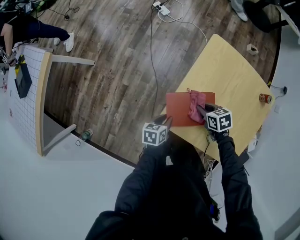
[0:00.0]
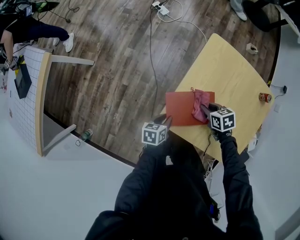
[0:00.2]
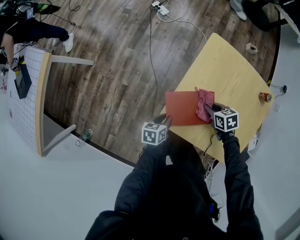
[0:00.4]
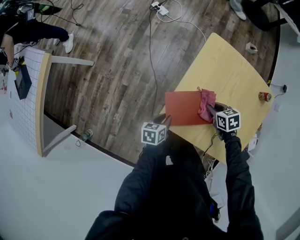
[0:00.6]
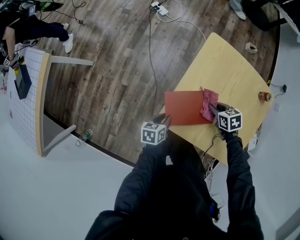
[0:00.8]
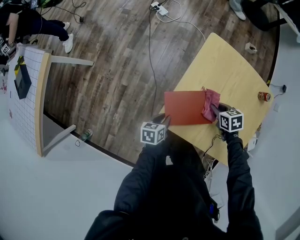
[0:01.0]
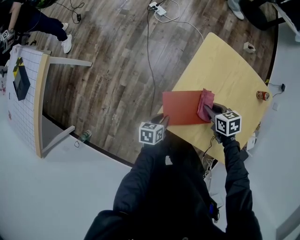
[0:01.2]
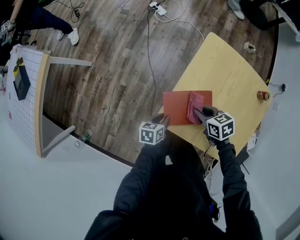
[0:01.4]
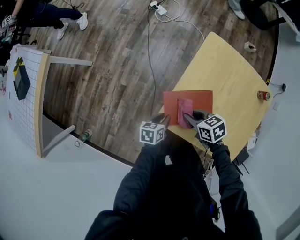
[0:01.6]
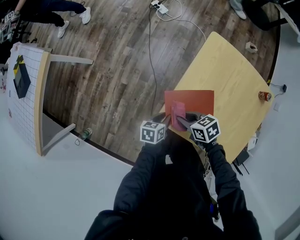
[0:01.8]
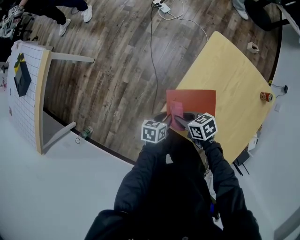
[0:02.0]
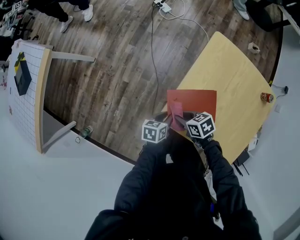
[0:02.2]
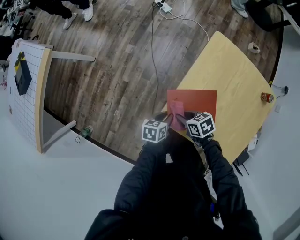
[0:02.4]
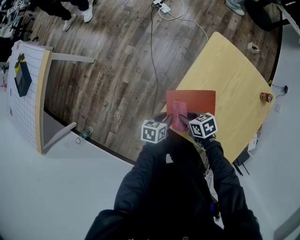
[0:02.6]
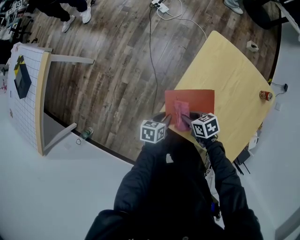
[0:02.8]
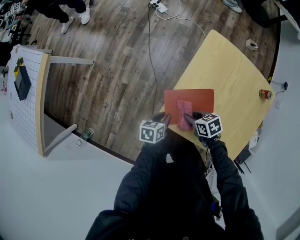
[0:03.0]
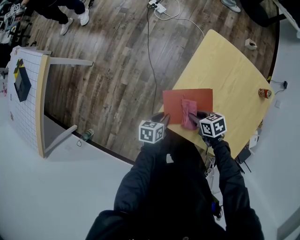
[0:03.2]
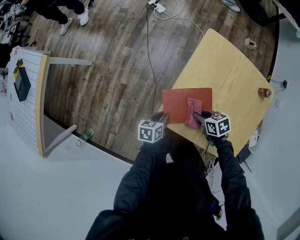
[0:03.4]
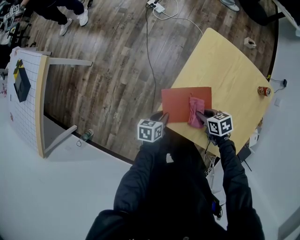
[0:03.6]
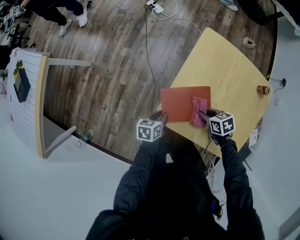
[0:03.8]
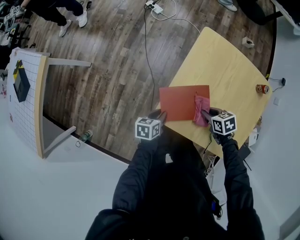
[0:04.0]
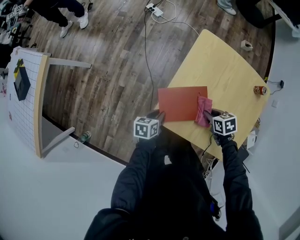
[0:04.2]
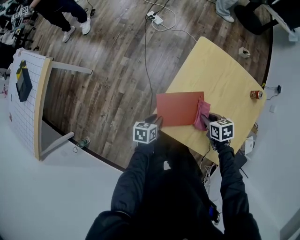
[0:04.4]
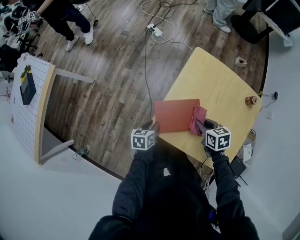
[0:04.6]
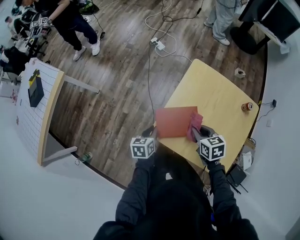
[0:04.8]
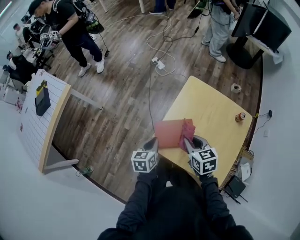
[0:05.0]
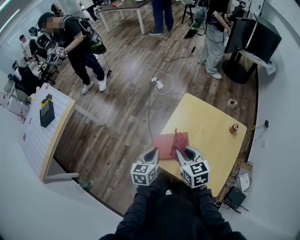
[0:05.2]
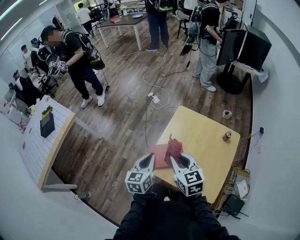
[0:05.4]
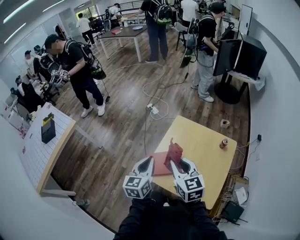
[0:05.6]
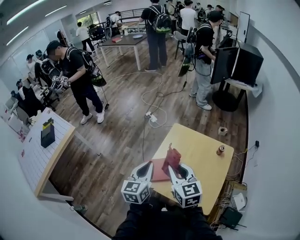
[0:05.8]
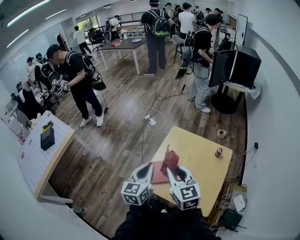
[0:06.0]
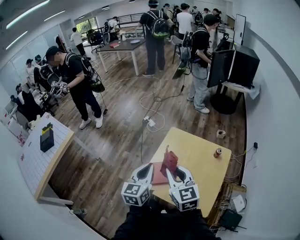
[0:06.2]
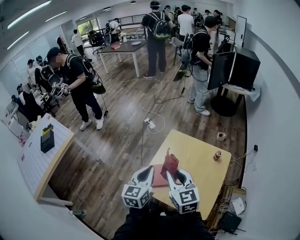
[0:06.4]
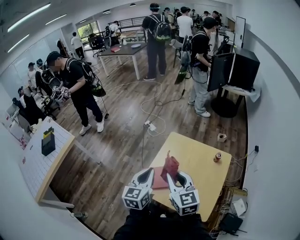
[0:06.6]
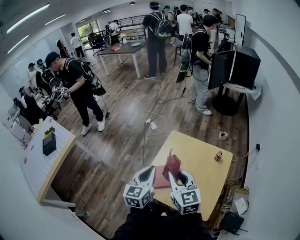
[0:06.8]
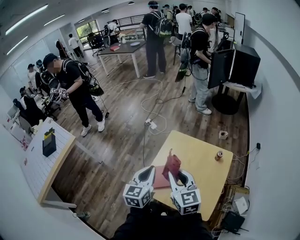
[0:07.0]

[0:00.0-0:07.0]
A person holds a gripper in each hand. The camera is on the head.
0:00.0 to 0:01.4: The right gripper moves upward, roughly 5 cm, and goes to the right and returns, about 10 cm each way.
0:01.4 to 0:02.8: The right gripper changes place by approximately 10 cm.
0:02.8 to 0:04.2: The right gripper changes place by some 15 cm.
0:04.2 to 0:05.6: The grippers both shift upward by about 40 cm. The right gripper angles its fingers upward, by about 40 degrees. Meanwhile the left gripper points its fingers approximately 30 degrees further upward.
0:05.6 to 0:07.0: The right gripper ends up about 5 cm from where it was. Meanwhile the left gripper shifts some 5 cm to the right.

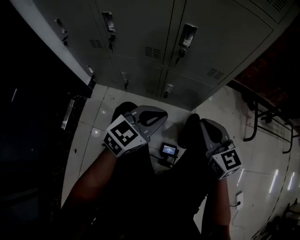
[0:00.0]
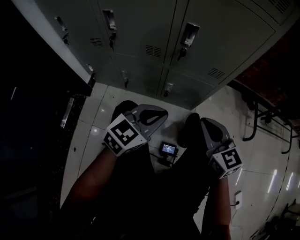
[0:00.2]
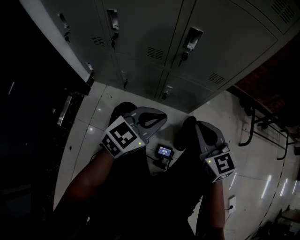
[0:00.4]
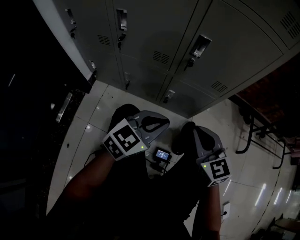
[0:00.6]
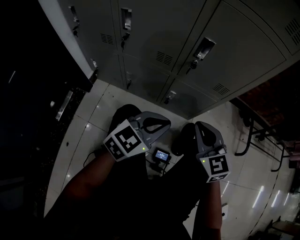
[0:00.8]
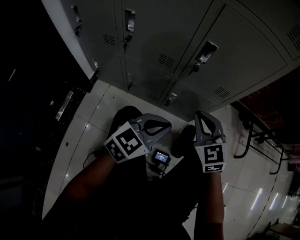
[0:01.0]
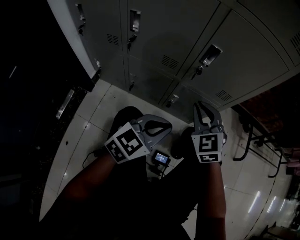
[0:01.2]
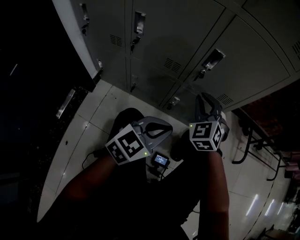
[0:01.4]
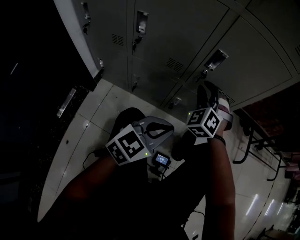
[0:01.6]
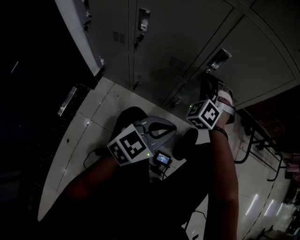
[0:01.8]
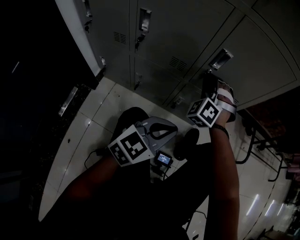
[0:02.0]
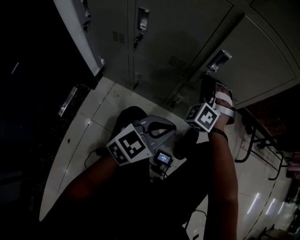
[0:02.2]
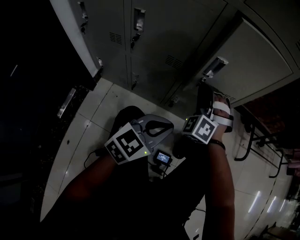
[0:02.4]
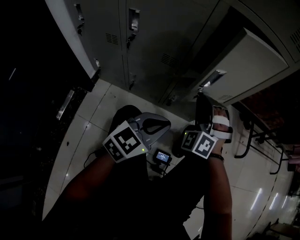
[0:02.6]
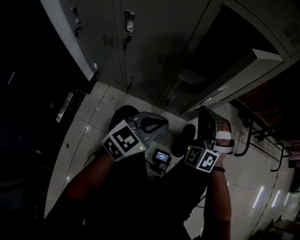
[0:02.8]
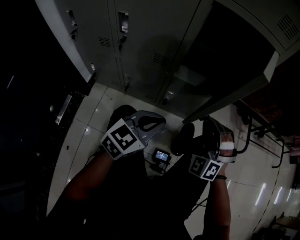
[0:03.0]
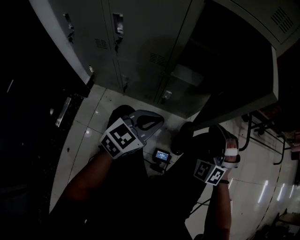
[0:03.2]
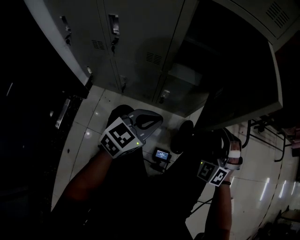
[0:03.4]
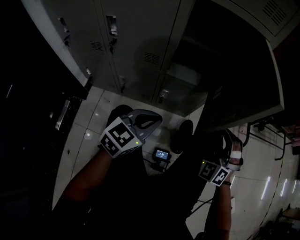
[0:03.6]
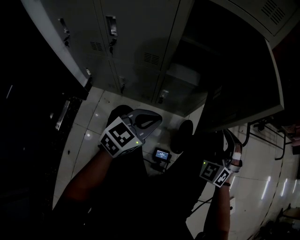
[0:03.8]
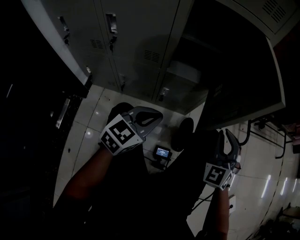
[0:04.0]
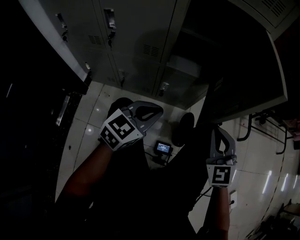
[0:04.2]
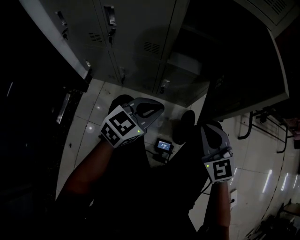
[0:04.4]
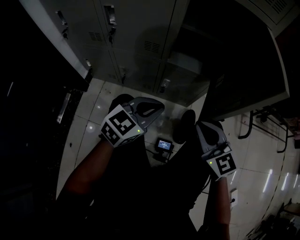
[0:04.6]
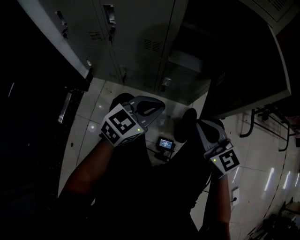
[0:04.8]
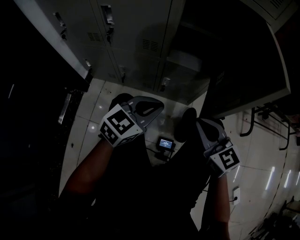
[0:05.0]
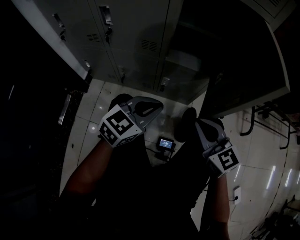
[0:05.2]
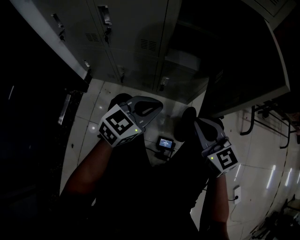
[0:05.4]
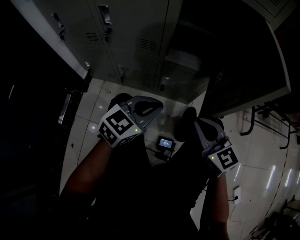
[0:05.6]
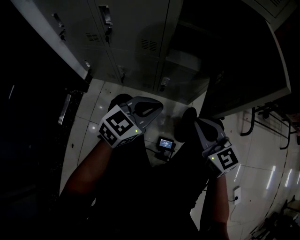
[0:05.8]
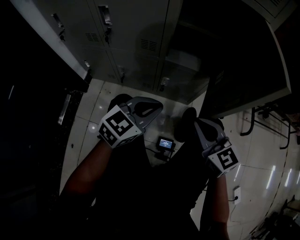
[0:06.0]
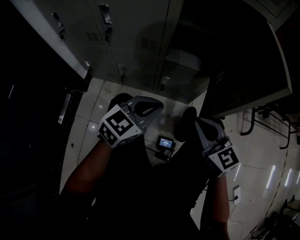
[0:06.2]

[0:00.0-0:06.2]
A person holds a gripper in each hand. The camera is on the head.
0:00.0 to 0:01.6: The right gripper heads forward and to the left, covering roughly 20 cm, twists approximately 60 degrees counterclockwise, seen from behind, and opens.
0:01.6 to 0:03.2: The right gripper shifts approximately 20 cm to the right and backward.
0:03.2 to 0:04.6: The right gripper goes approximately 5 cm backward, moves some 5 cm to the right and comes back, and twists approximately 60 degrees clockwise, seen from behind.
0:04.6 to 0:06.2: The grippers move only a little.

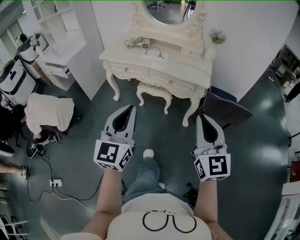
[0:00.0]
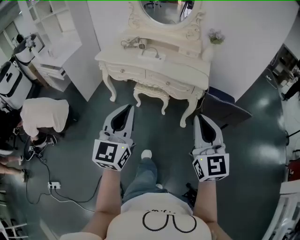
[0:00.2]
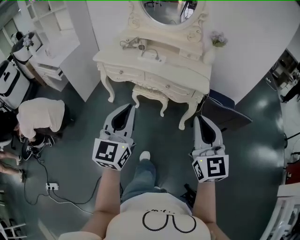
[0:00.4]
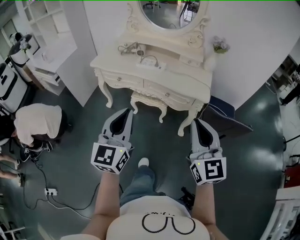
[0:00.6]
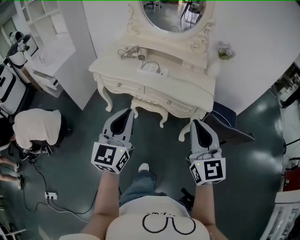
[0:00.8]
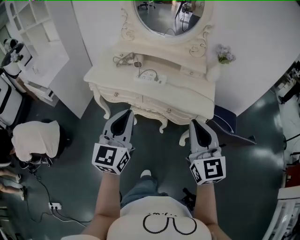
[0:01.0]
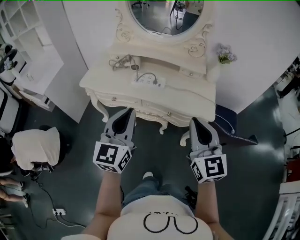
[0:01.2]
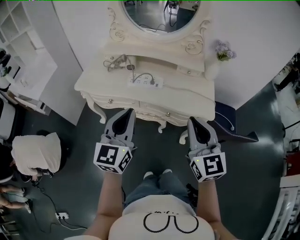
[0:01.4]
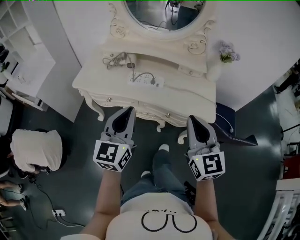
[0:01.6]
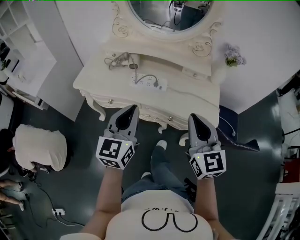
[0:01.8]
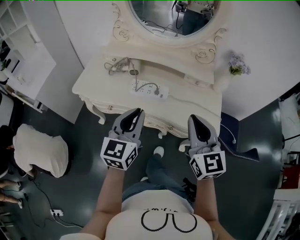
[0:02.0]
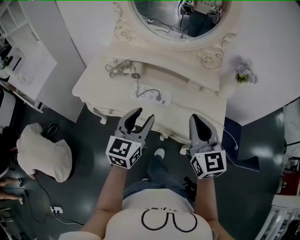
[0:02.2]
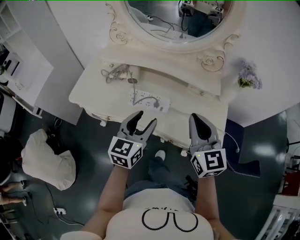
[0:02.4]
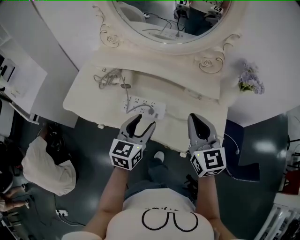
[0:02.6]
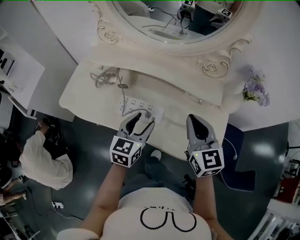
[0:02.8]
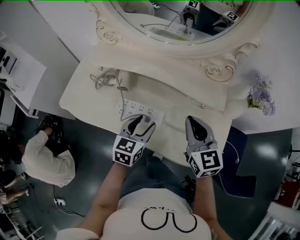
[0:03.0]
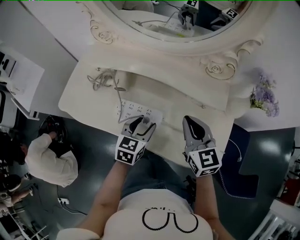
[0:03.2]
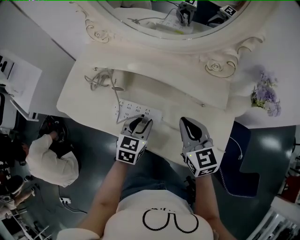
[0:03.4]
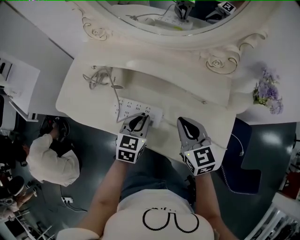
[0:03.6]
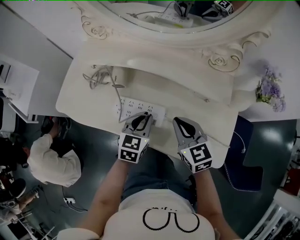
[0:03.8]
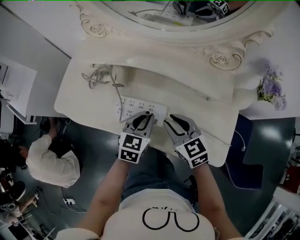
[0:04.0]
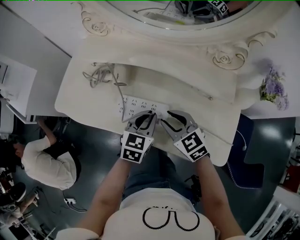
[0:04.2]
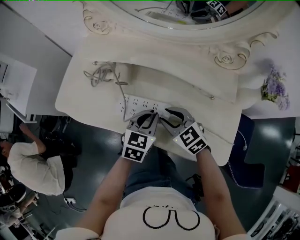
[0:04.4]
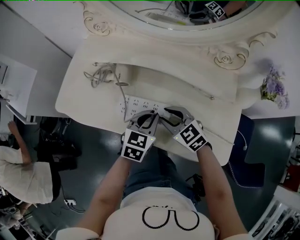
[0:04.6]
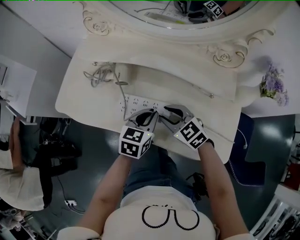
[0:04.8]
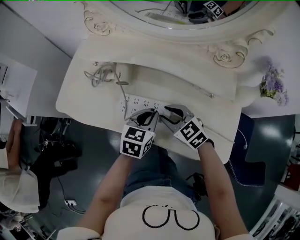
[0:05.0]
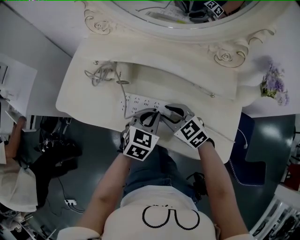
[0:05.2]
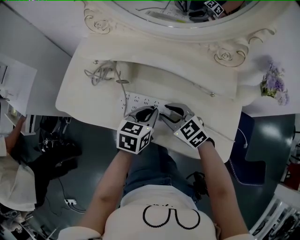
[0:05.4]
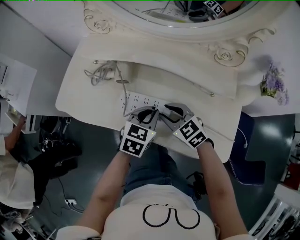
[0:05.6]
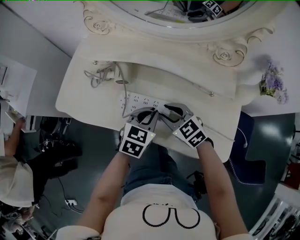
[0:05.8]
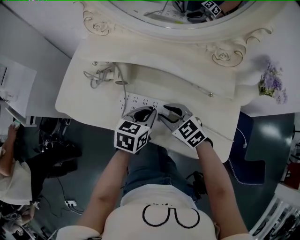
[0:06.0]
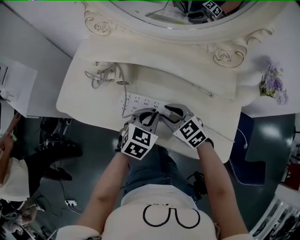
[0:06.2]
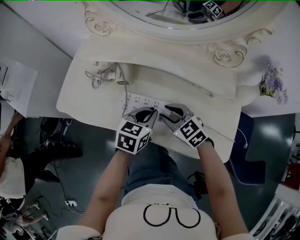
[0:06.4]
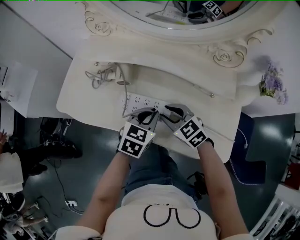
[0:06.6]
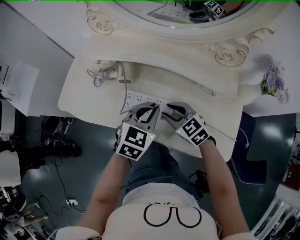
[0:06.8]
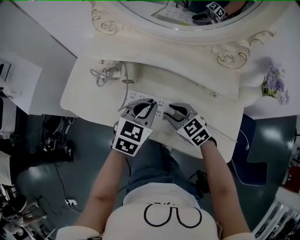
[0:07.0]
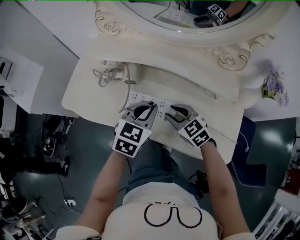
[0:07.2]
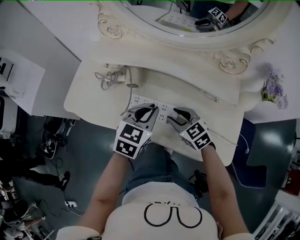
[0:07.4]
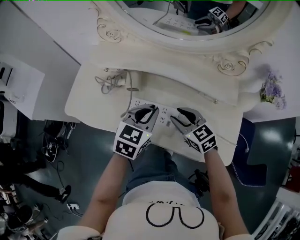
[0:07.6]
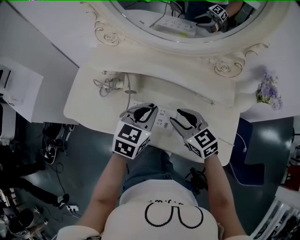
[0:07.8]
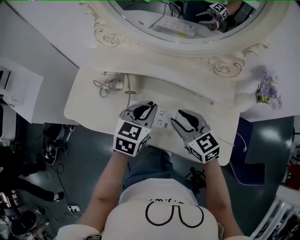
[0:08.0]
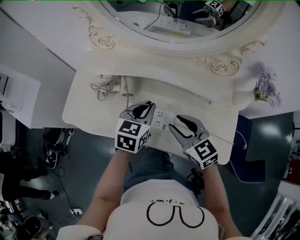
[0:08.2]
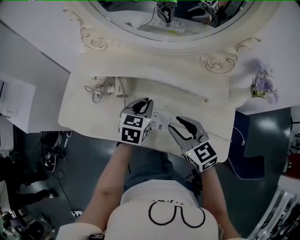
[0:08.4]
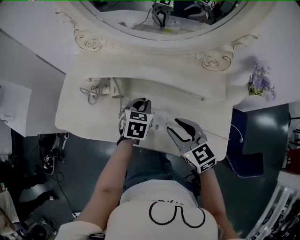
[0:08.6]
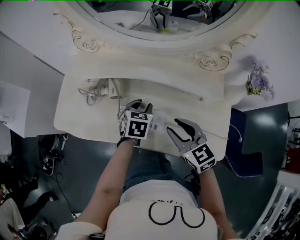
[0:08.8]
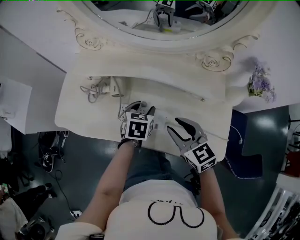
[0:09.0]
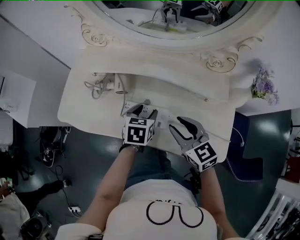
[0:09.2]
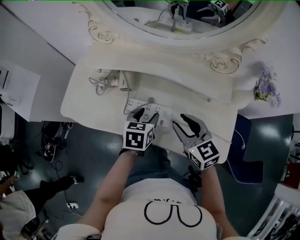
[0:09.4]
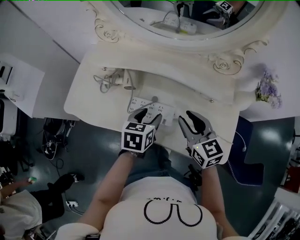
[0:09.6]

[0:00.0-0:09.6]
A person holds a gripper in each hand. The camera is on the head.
0:00.0 to 0:01.6: The grippers both shift forward by some 35 cm.
0:01.6 to 0:03.2: The two grippers go approximately 35 cm forward and downward. The right gripper changes its angle by about 20 degrees, while the left gripper tilts its fingers about 30 degrees downward, and opens its fingers.
0:03.2 to 0:04.8: The left gripper closes its fingers, while the right gripper shifts about 20 cm downward and to the left, changes its angle by some 30 degrees, and opens up.
0:06.4 to 0:08.0: The two grippers go roughly 10 cm upward.
0:08.0 to 0:09.6: The left gripper shifts some 5 cm downward, changes its angle by about 20 degrees, and opens its fingers.

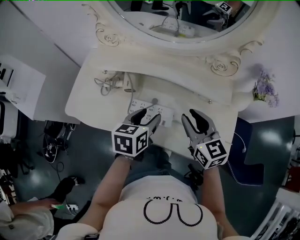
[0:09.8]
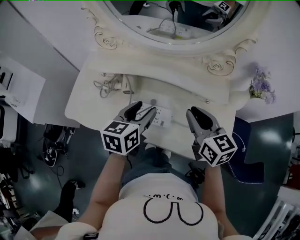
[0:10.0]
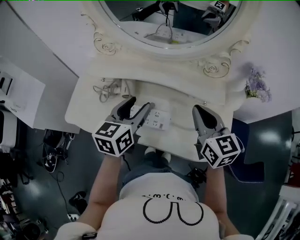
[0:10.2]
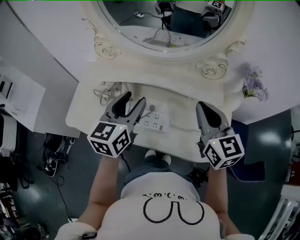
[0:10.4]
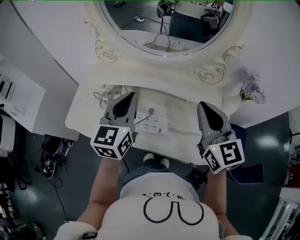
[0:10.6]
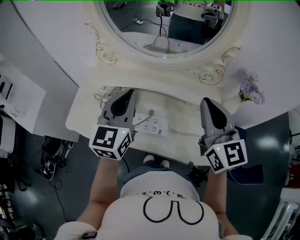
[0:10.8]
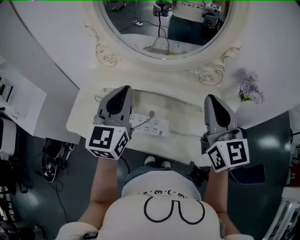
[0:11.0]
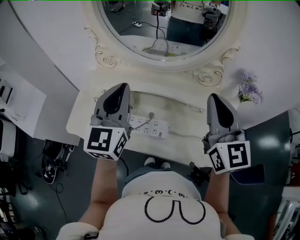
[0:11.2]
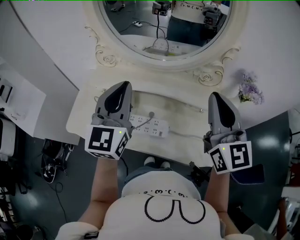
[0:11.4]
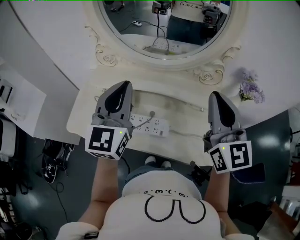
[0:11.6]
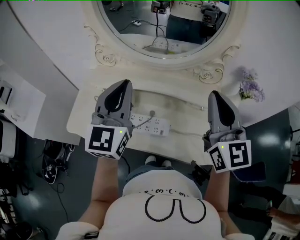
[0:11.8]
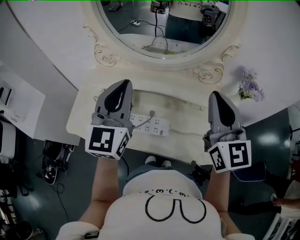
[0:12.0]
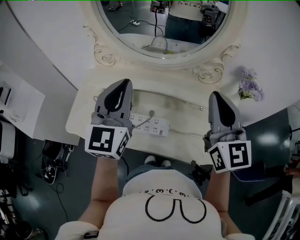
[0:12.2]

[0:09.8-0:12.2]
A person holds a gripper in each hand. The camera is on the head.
0:09.8 to 0:11.0: The two grippers go some 20 cm upward. The right gripper swivels approximately 30 degrees, and closes up, while the left gripper angles its fingers upward, by roughly 40 degrees, and closes up.
0:11.0 to 0:12.2: The grippers stay close to where they were, moving slightly.
